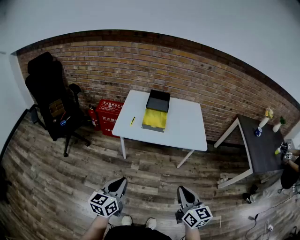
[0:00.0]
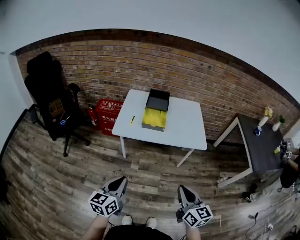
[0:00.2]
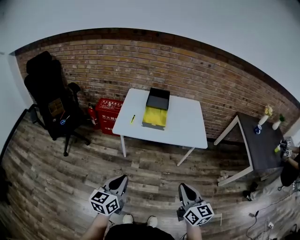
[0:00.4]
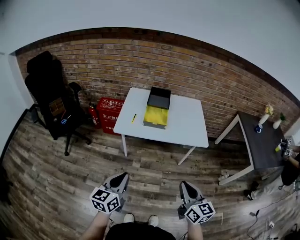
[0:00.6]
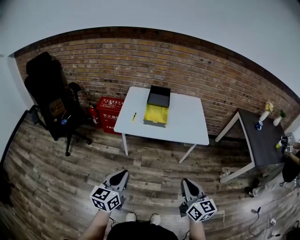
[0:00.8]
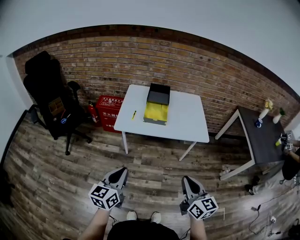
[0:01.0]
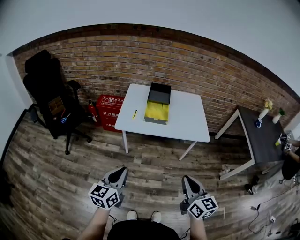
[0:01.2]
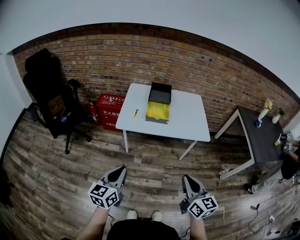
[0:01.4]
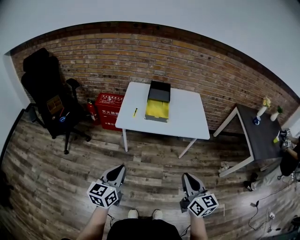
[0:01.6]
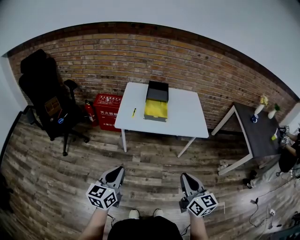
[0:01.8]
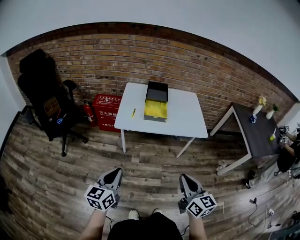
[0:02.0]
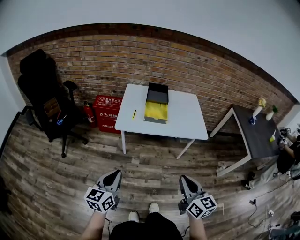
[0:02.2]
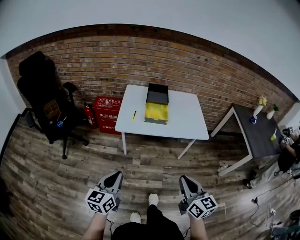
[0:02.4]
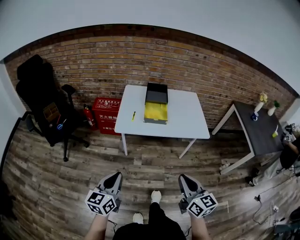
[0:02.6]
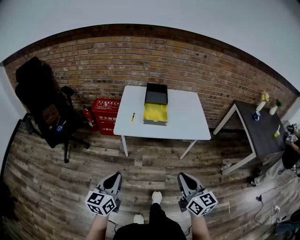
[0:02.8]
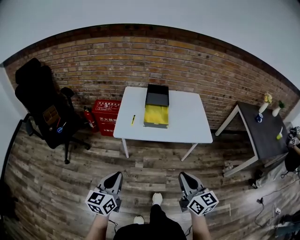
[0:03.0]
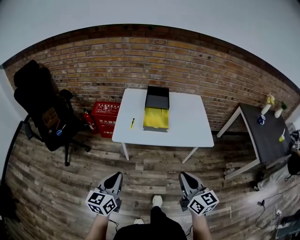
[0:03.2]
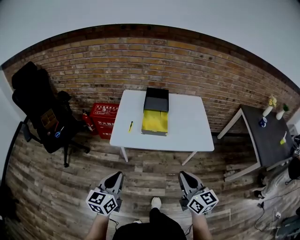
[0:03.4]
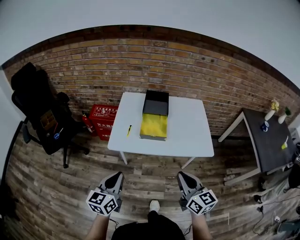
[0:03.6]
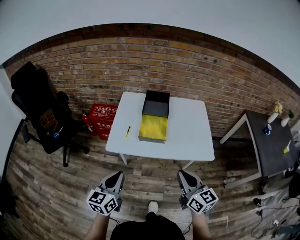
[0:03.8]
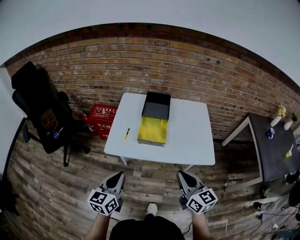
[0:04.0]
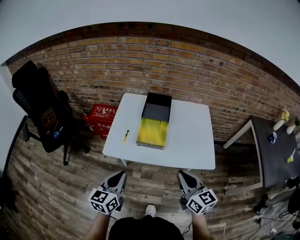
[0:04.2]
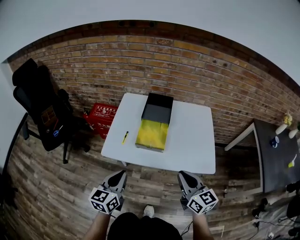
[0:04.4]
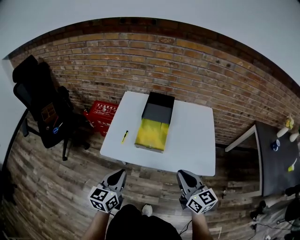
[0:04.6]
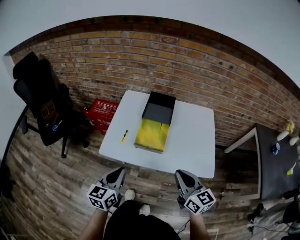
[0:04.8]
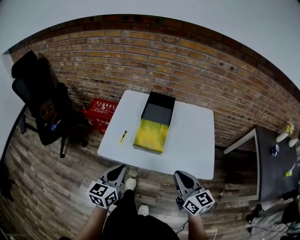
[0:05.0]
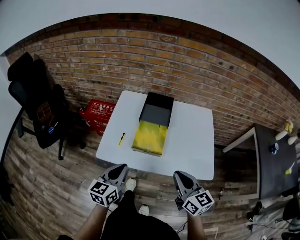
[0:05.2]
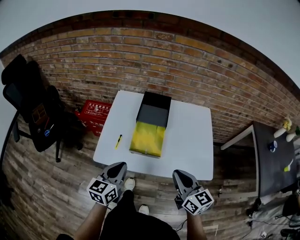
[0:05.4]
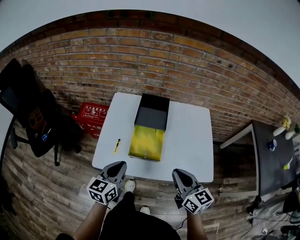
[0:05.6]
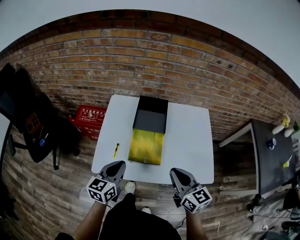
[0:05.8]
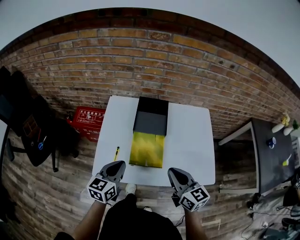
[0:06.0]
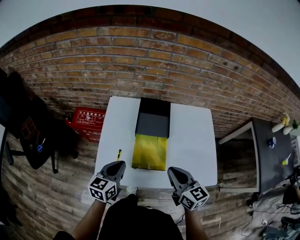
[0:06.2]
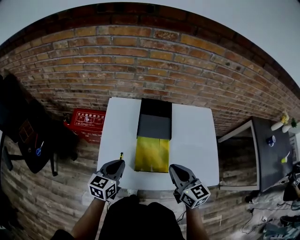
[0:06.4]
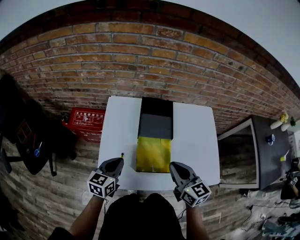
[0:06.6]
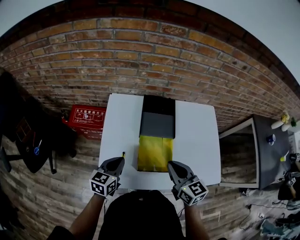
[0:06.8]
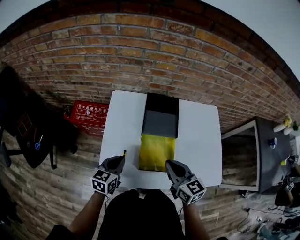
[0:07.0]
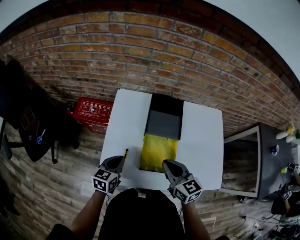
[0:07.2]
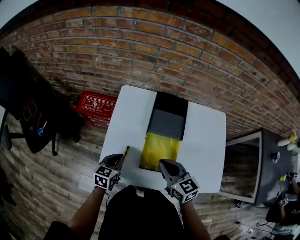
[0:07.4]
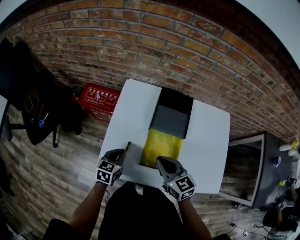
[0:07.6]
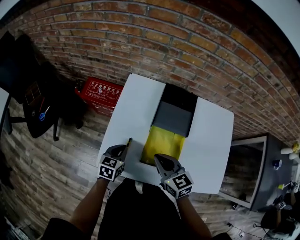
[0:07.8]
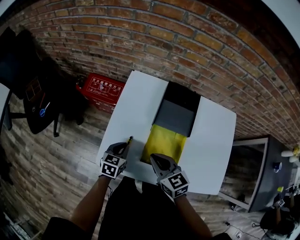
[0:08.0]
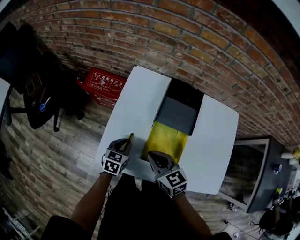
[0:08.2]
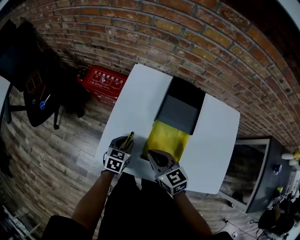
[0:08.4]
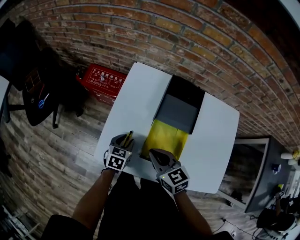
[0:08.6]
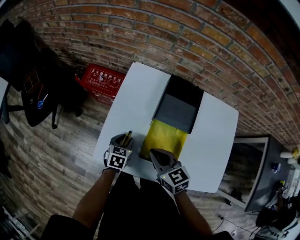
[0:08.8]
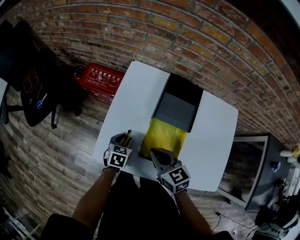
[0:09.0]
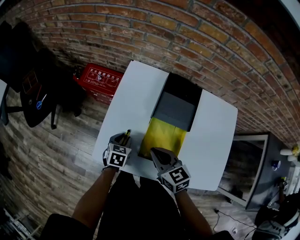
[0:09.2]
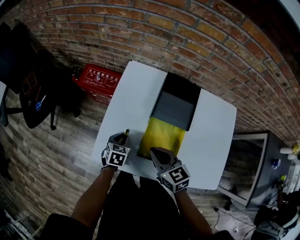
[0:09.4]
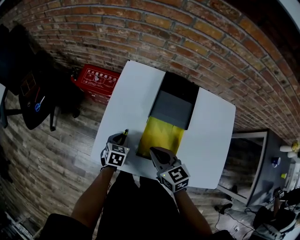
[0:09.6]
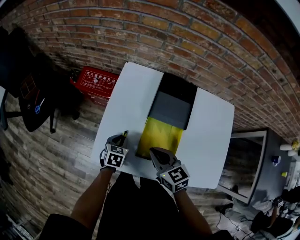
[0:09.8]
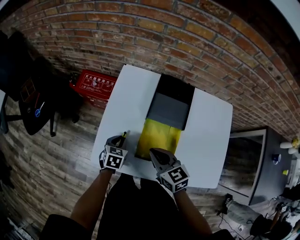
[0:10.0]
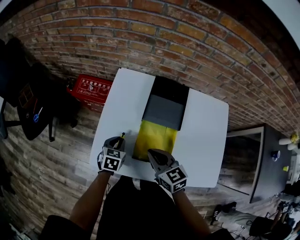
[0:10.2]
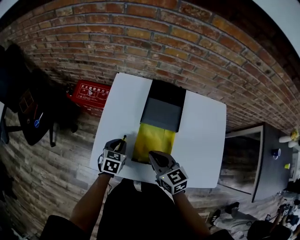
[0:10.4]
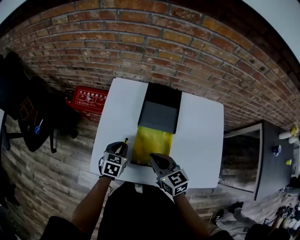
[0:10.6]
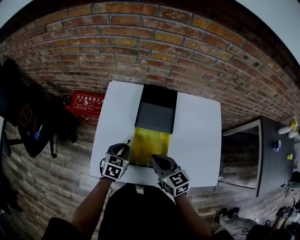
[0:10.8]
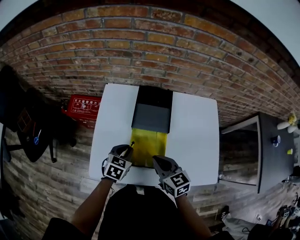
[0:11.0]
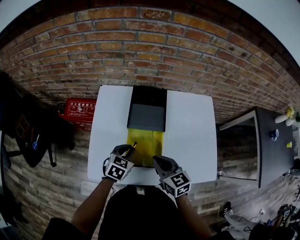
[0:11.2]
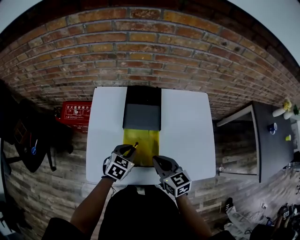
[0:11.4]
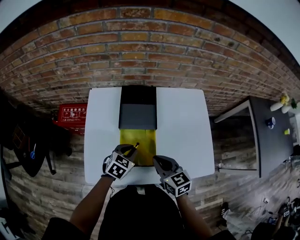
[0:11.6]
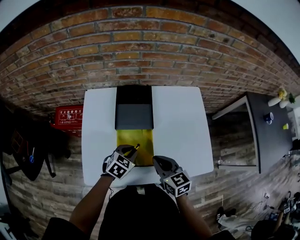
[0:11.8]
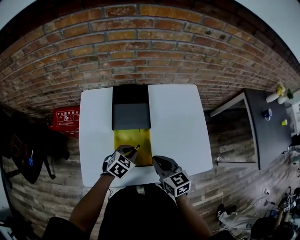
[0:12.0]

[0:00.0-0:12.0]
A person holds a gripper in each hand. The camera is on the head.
0:00.0 to 0:01.6: The left gripper moves to the left, some 5 cm.
0:01.6 to 0:03.0: The right gripper moves forward, roughly 5 cm. Meanwhile the left gripper moves some 5 cm.
0:03.0 to 0:04.4: Both grippers move forward and to the right, roughly 25 cm.
0:04.4 to 0:06.0: Both grippers move forward, some 20 cm.
0:06.0 to 0:07.6: The left gripper heads downward, to the left and forward, covering some 15 cm, while the right gripper heads to the left, forward and downward, covering approximately 15 cm.
0:07.6 to 0:09.0: The left gripper travels downward by about 10 cm, and opens its fingers; the right gripper shifts by about 5 cm.
0:09.0 to 0:10.4: The left gripper moves upward, about 5 cm.
0:10.4 to 0:12.0: The left gripper moves approximately 15 cm, and rotates roughly 40 degrees, while the right gripper ends up about 10 cm from where it was.

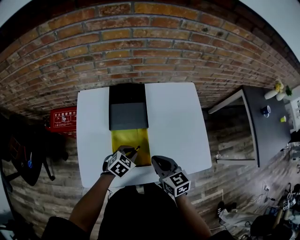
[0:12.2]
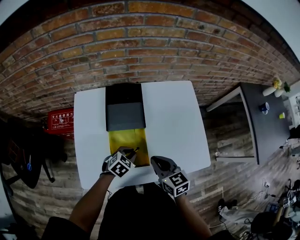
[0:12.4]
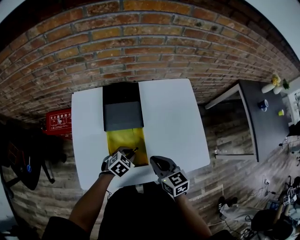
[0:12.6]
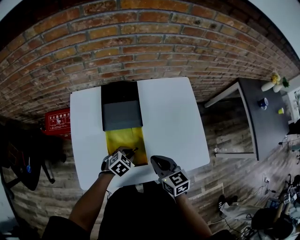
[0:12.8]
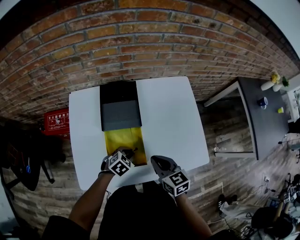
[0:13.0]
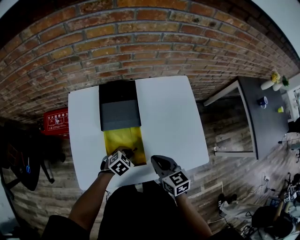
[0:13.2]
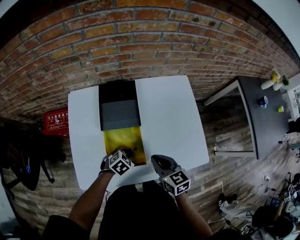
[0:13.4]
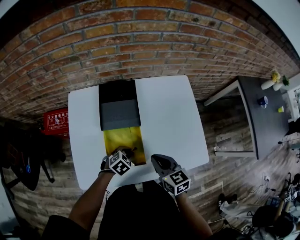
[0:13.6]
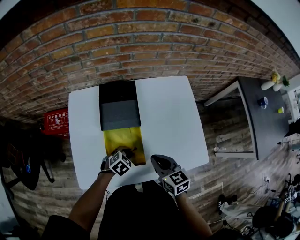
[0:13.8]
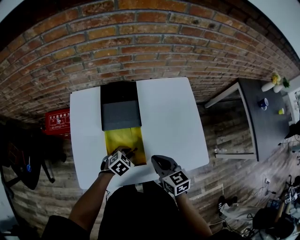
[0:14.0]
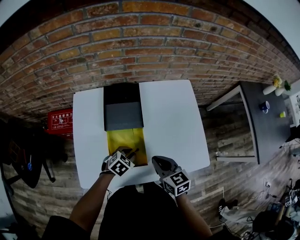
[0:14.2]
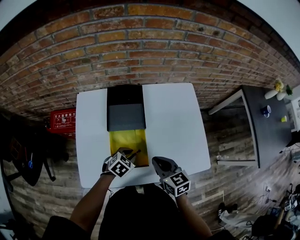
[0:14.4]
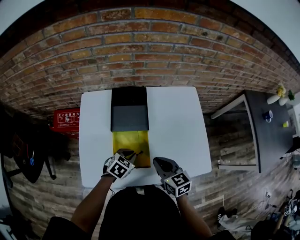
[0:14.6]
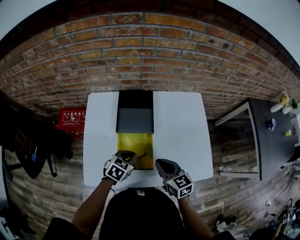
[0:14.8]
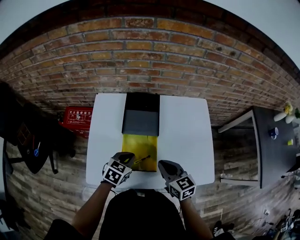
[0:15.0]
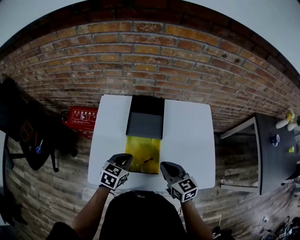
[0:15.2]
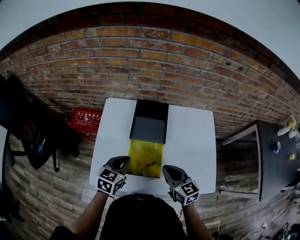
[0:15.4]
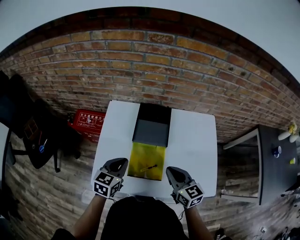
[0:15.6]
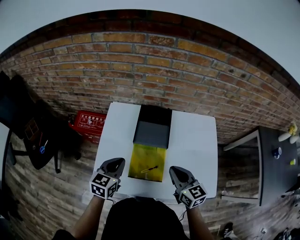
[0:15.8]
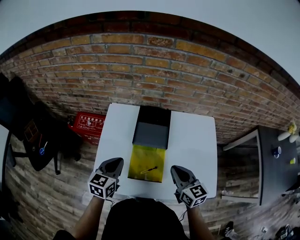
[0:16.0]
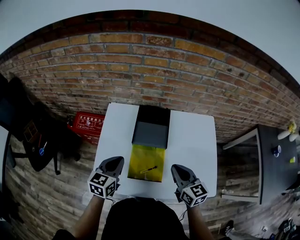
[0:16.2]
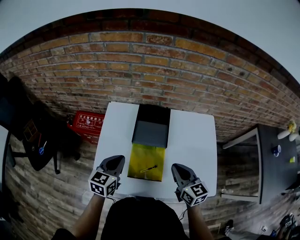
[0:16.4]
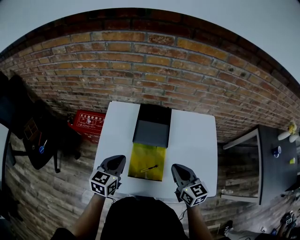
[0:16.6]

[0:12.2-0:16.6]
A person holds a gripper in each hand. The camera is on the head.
0:12.2 to 0:13.6: The left gripper changes place by approximately 5 cm.
0:13.6 to 0:15.2: The left gripper is displaced upward and to the left by approximately 15 cm, and turns by approximately 40 degrees. The right gripper moves about 5 cm.
0:15.2 to 0:16.6: The right gripper shifts by approximately 5 cm. Meanwhile the left gripper shifts some 10 cm upward and to the left.

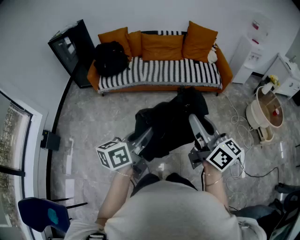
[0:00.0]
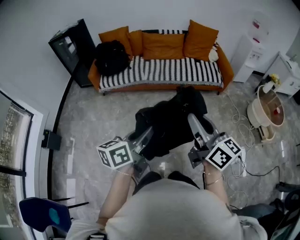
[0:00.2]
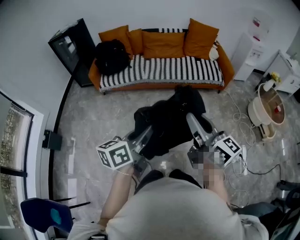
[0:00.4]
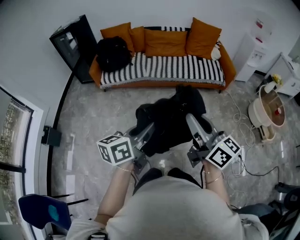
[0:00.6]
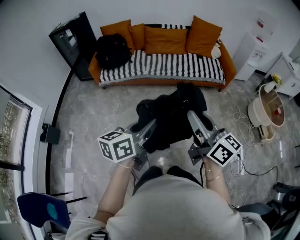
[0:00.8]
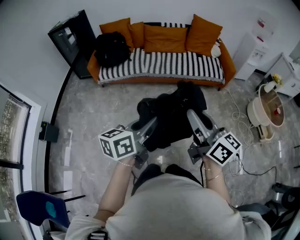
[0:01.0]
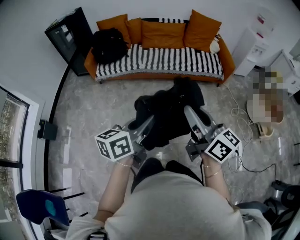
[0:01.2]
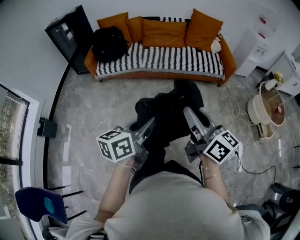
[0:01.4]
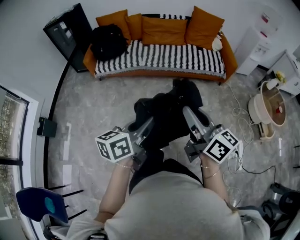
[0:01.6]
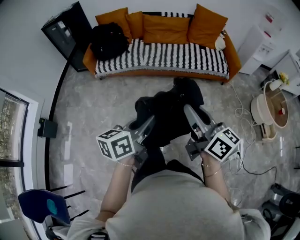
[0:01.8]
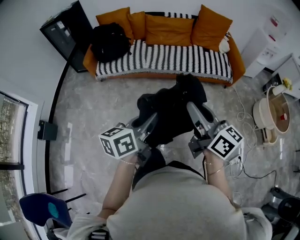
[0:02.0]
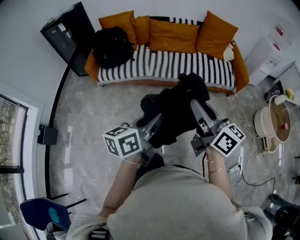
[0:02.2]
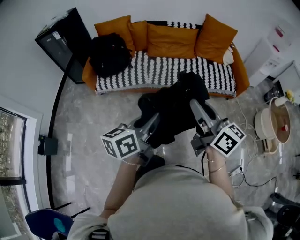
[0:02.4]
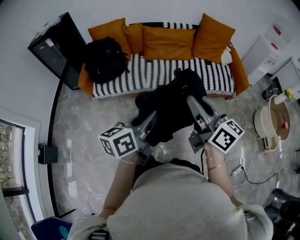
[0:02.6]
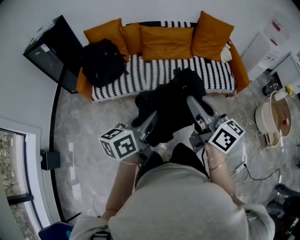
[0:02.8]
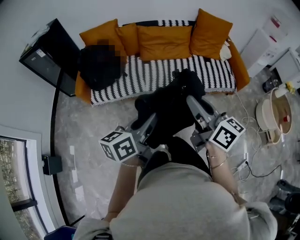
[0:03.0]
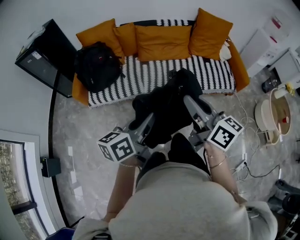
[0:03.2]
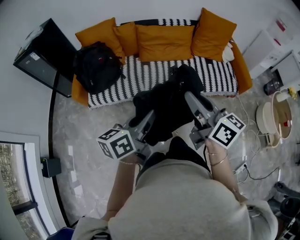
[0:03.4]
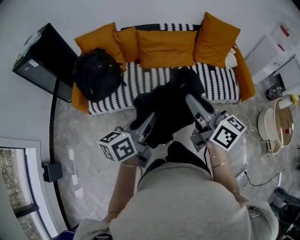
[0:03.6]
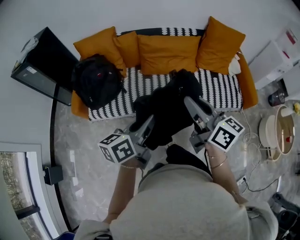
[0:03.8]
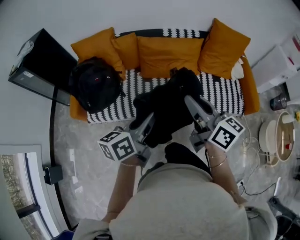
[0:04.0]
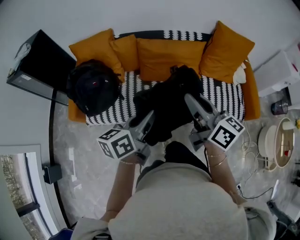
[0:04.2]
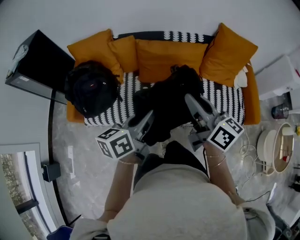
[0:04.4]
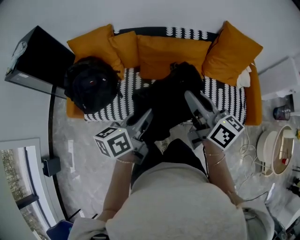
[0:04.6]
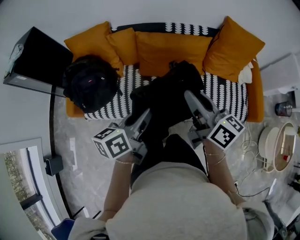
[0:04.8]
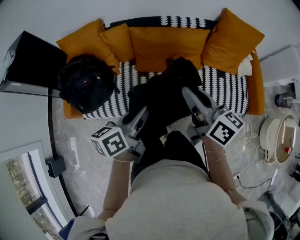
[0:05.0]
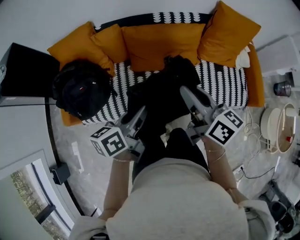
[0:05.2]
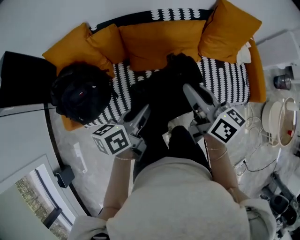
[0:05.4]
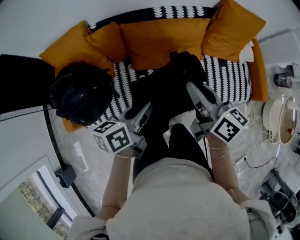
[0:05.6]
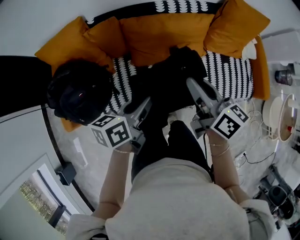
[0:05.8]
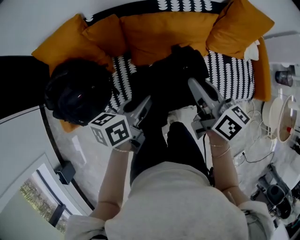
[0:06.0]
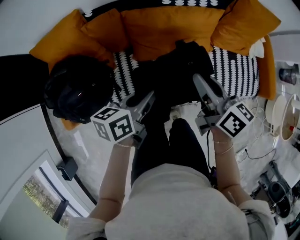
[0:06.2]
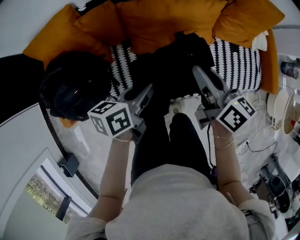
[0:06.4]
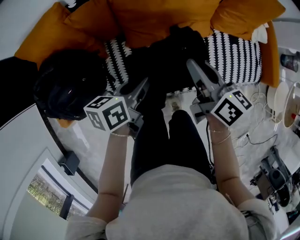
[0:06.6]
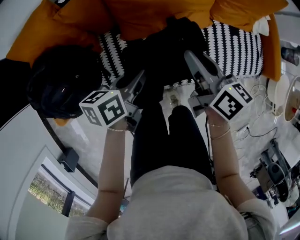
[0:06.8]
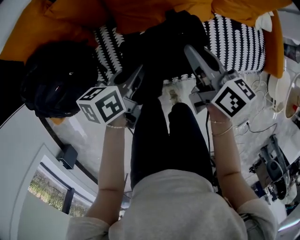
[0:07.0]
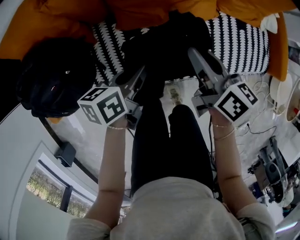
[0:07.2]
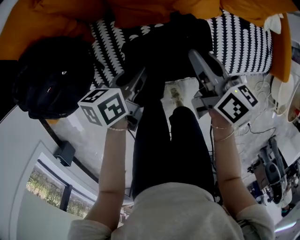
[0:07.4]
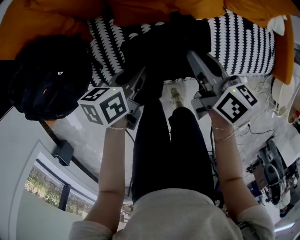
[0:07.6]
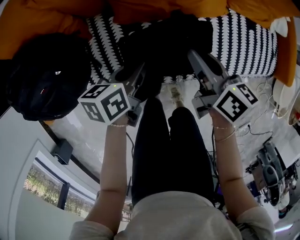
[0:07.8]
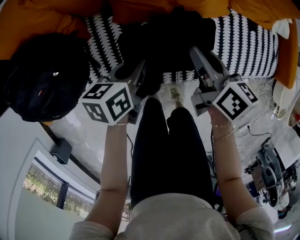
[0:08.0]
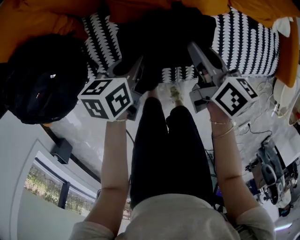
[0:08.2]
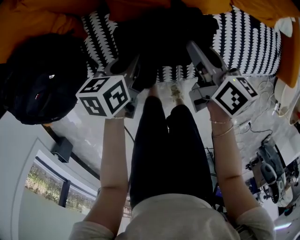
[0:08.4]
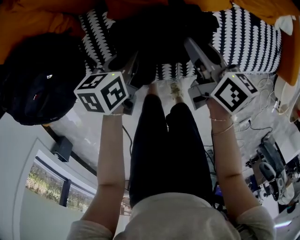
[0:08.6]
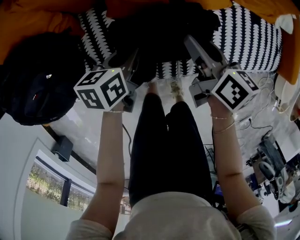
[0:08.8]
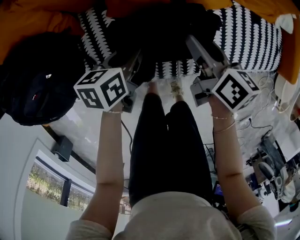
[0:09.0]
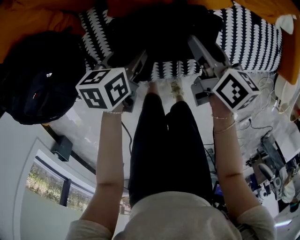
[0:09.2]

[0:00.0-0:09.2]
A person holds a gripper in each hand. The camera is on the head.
0:00.0 to 0:01.6: The right gripper travels forward and downward by approximately 10 cm, while the left gripper goes about 5 cm forward.
0:01.6 to 0:03.0: Both grippers are carried forward, roughly 50 cm.
0:03.0 to 0:04.6: The two grippers travel together, forward, about 50 cm.
0:04.6 to 0:06.2: The right gripper moves forward and downward, about 25 cm. Meanwhile the left gripper moves forward, downward and to the left, about 30 cm, and rotates about 20 degrees.
0:06.2 to 0:07.6: The grippers both shift downward by roughly 20 cm.
0:07.6 to 0:09.2: Both grippers move downward, some 10 cm. The left gripper opens, while the right gripper opens its fingers.
